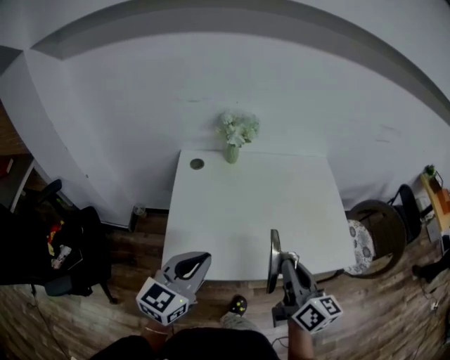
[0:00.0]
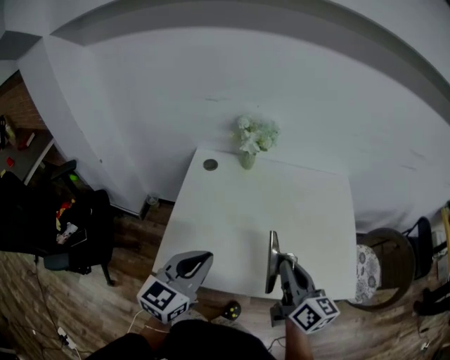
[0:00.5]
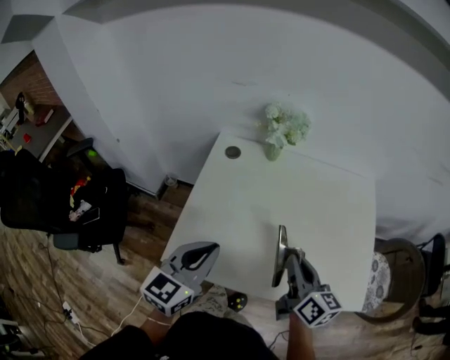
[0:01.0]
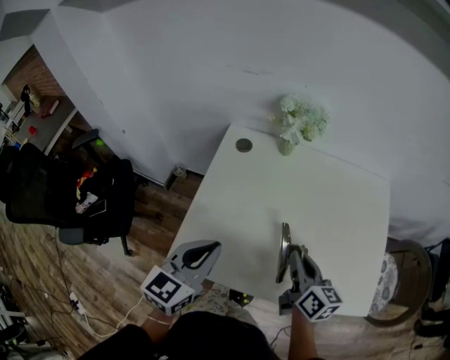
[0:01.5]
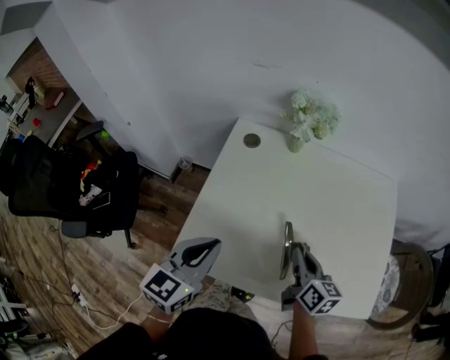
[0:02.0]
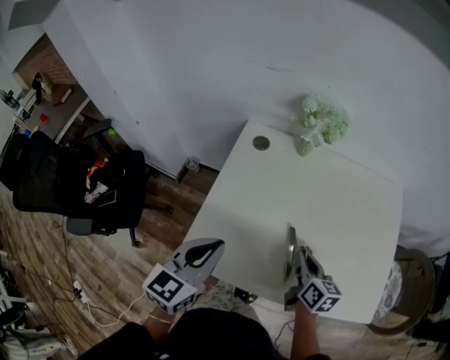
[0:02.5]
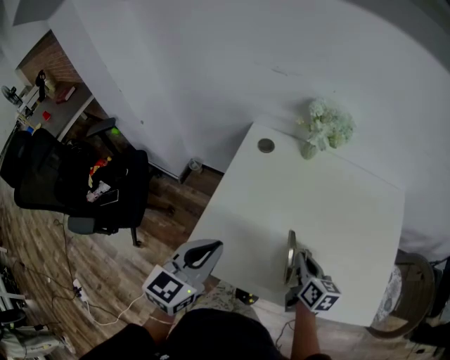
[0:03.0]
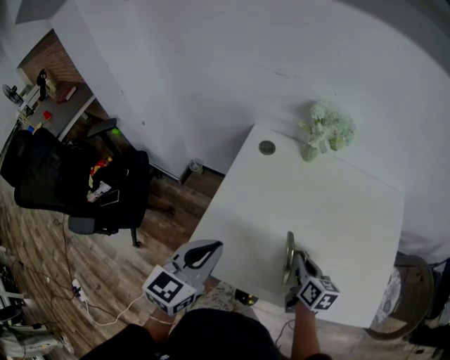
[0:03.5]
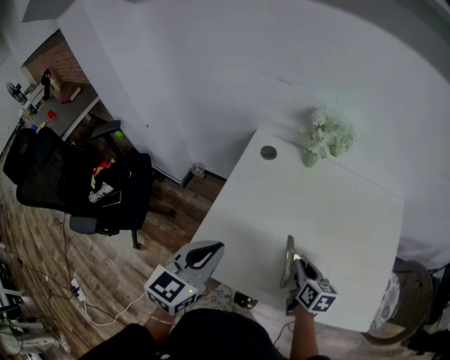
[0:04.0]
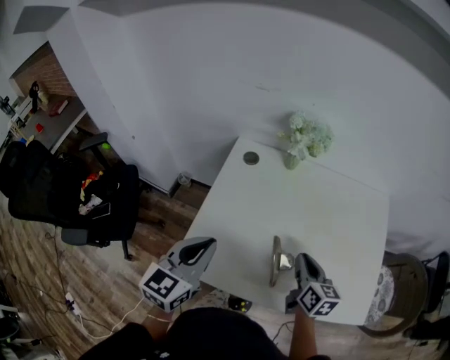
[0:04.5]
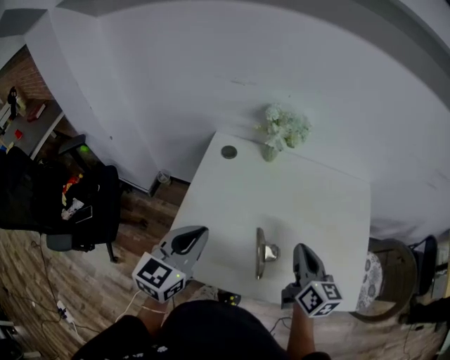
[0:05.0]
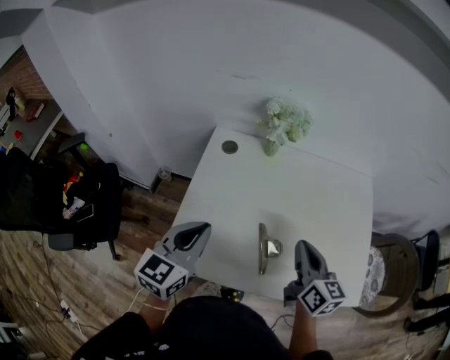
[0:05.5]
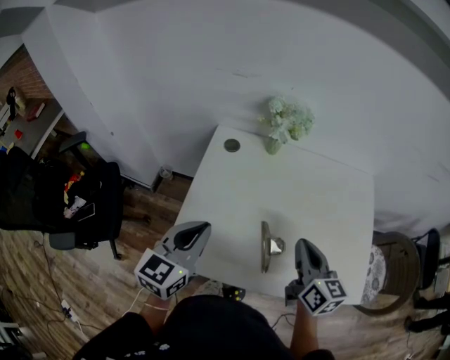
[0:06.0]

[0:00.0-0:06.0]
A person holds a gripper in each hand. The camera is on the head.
0:00.0 to 0:02.0: The right gripper travels forward and downward by some 25 cm, and swivels about 20 degrees. The left gripper goes approximately 10 cm forward and downward, and swivels about 20 degrees.
0:02.0 to 0:04.0: The right gripper heads downward, covering some 5 cm.
0:04.0 to 0:06.0: The right gripper travels upward by some 15 cm, rotates roughly 20 degrees, and closes.

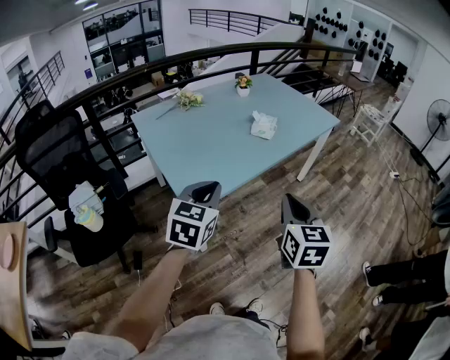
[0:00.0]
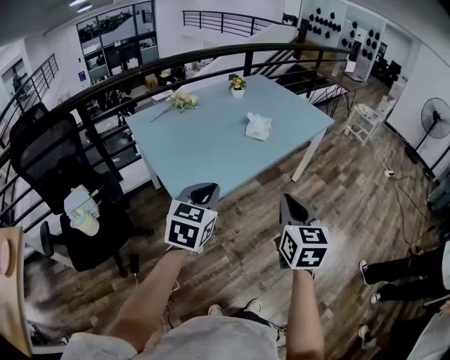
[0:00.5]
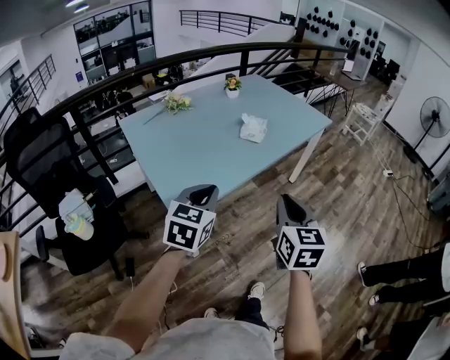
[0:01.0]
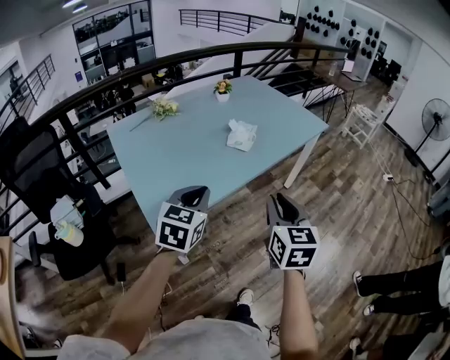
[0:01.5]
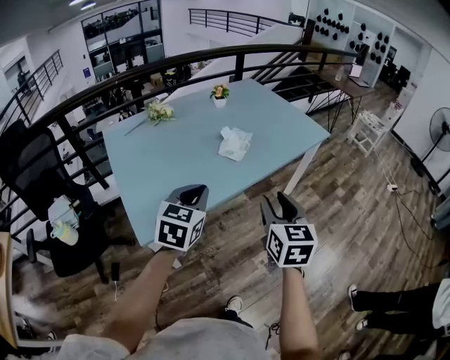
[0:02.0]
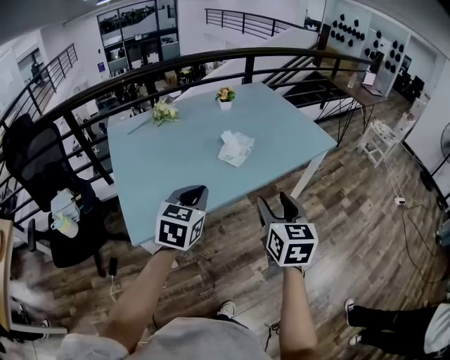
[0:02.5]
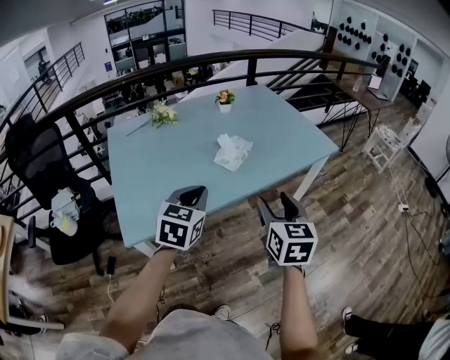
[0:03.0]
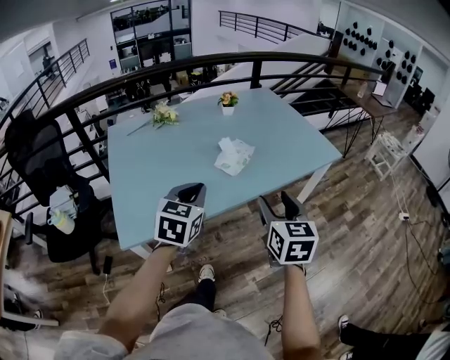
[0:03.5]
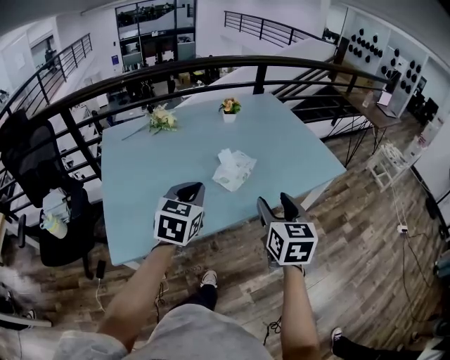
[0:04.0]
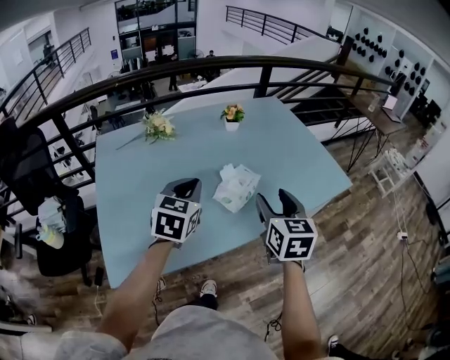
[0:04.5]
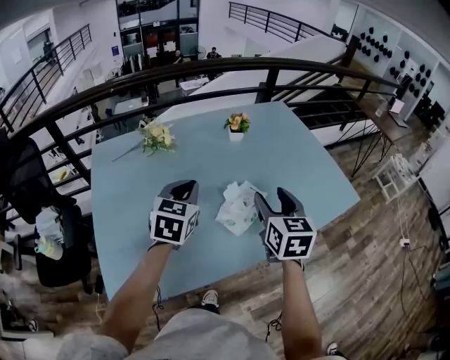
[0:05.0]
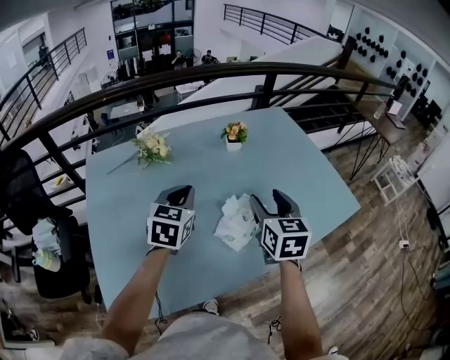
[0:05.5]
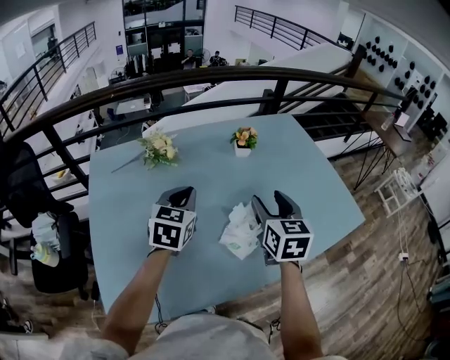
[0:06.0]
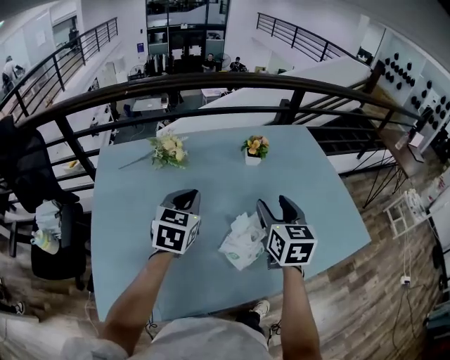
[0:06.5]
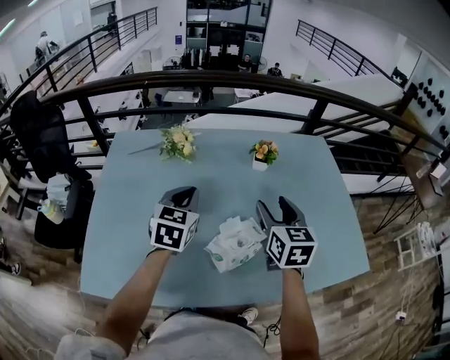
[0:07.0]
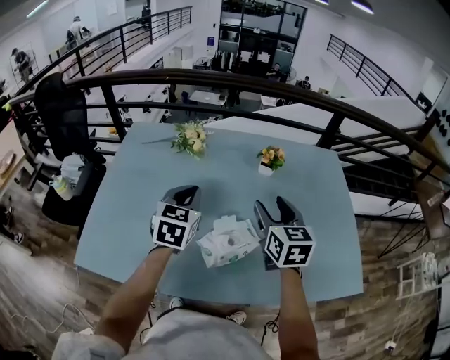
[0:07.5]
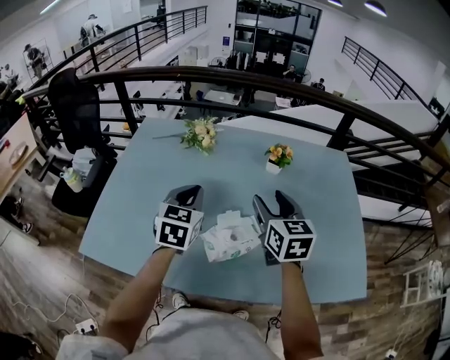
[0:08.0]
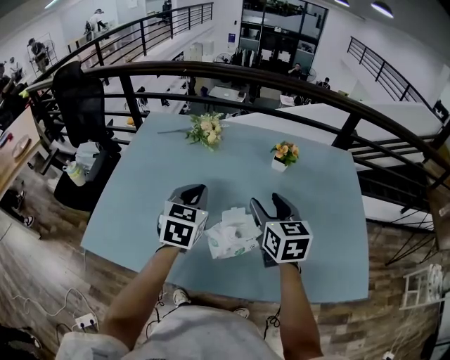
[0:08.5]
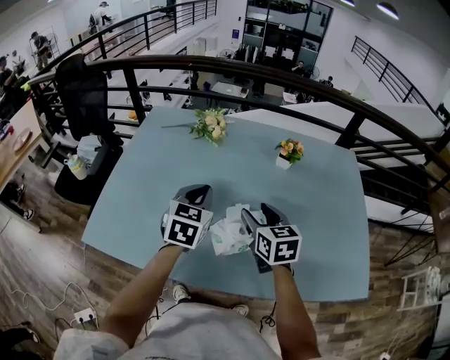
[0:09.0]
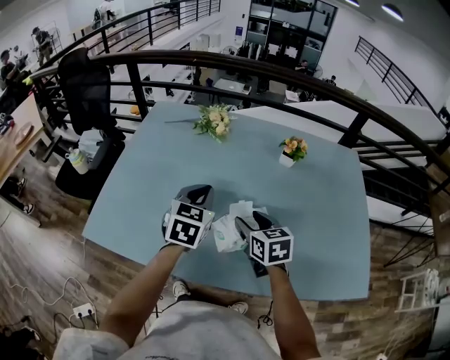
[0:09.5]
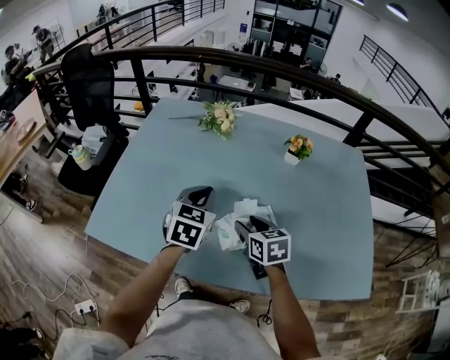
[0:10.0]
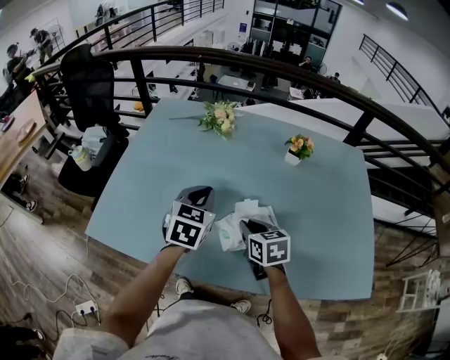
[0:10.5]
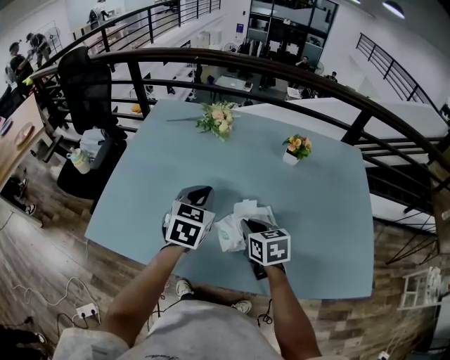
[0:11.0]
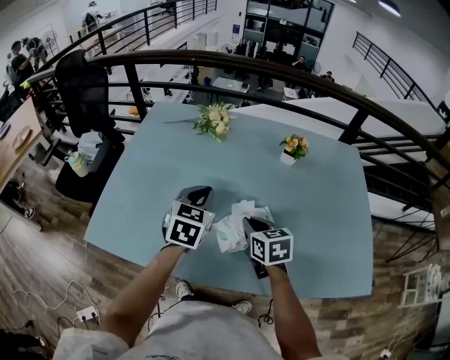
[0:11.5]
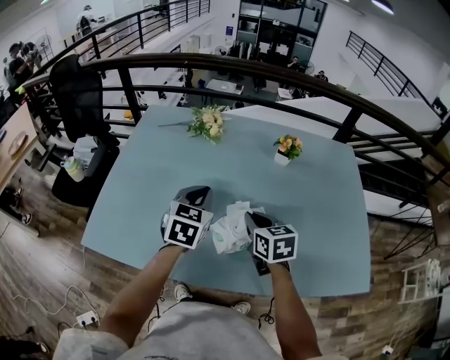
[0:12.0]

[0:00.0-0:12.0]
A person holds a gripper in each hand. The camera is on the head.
0:00.0 to 0:02.0: The grippers both shift forward and to the right by roughly 20 cm. The right gripper opens.
0:02.0 to 0:04.0: Both grippers travel together forward, approximately 15 cm. The right gripper opens up.
0:04.0 to 0:06.0: The grippers both shift forward by roughly 25 cm.
0:06.0 to 0:08.0: The left gripper shifts by roughly 5 cm, and rotates approximately 30 degrees, while the right gripper changes place by some 5 cm, and rotates about 30 degrees.
0:08.0 to 0:10.0: The left gripper shifts by about 5 cm; the right gripper shifts roughly 20 cm downward and to the left, and swivels some 30 degrees.
0:10.0 to 0:12.0: The right gripper moves some 5 cm, and closes up.

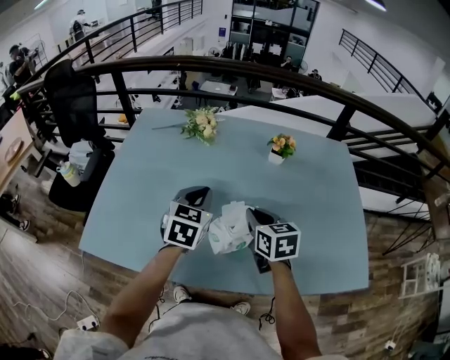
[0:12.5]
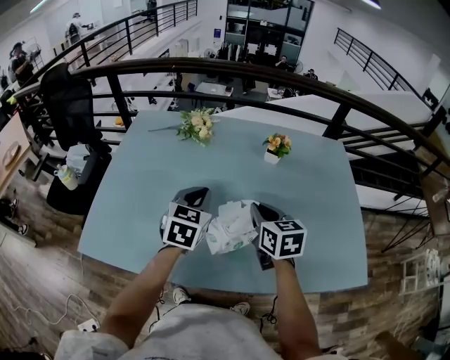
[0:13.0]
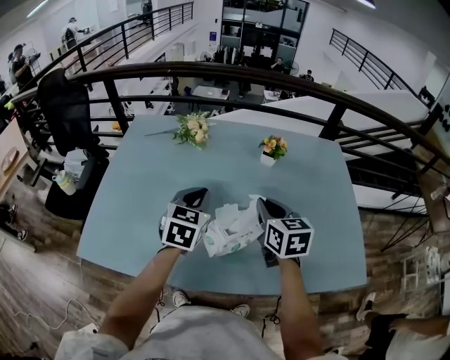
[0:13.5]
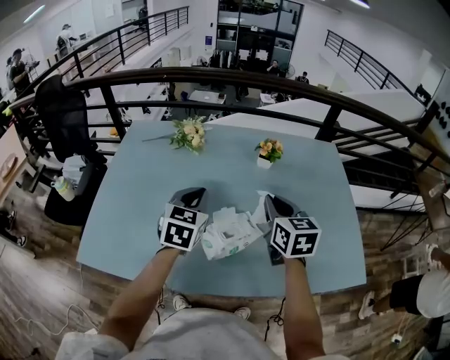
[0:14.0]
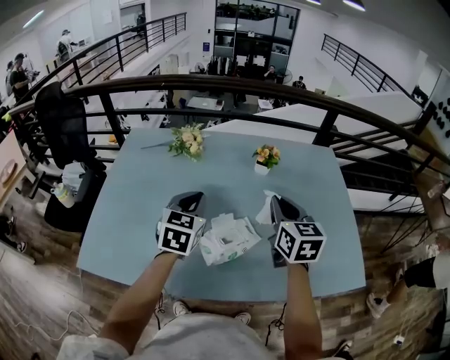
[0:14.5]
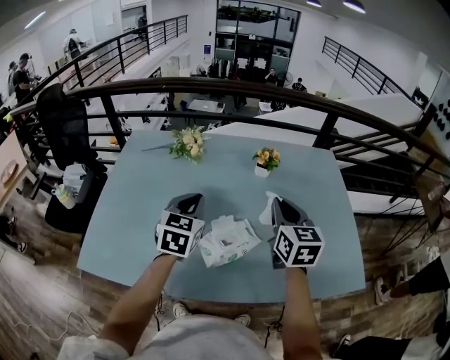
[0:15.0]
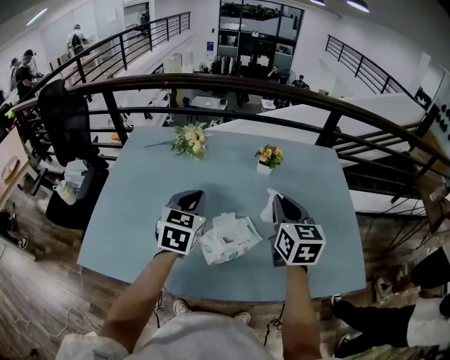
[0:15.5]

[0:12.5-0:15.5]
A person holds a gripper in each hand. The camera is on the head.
0:12.5 to 0:14.0: The right gripper heads upward and to the right, covering roughly 10 cm.
0:14.0 to 0:15.5: The grippers stay close to where they were, moving slightly.

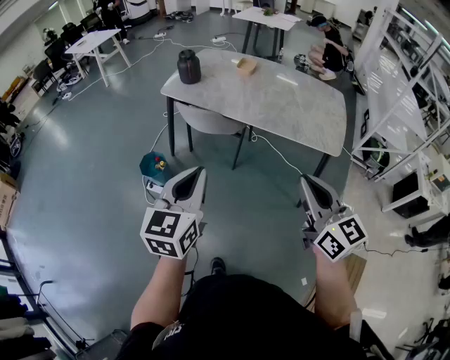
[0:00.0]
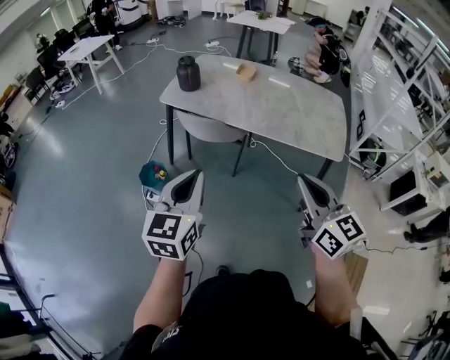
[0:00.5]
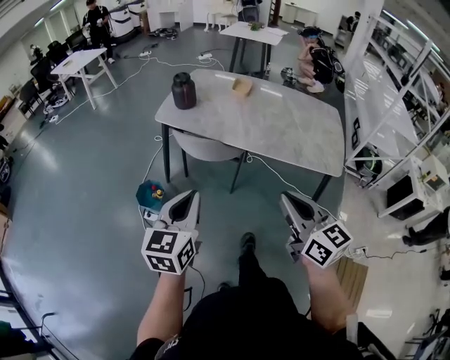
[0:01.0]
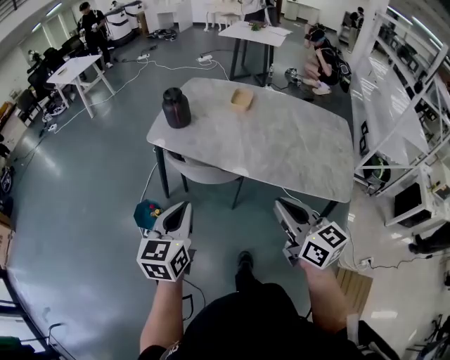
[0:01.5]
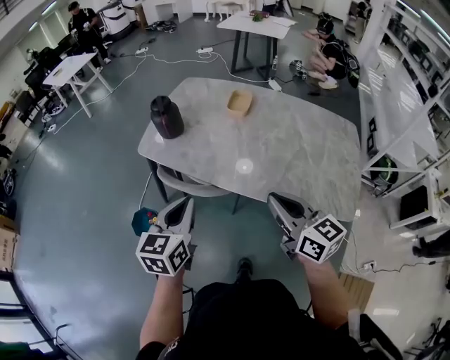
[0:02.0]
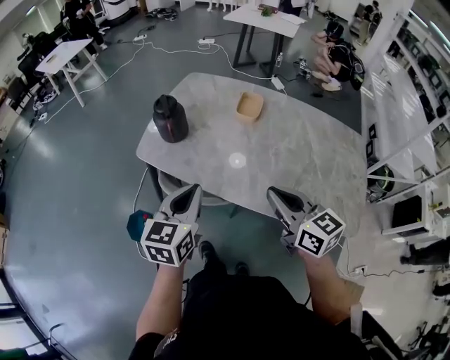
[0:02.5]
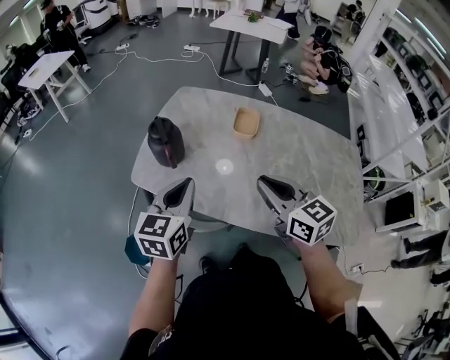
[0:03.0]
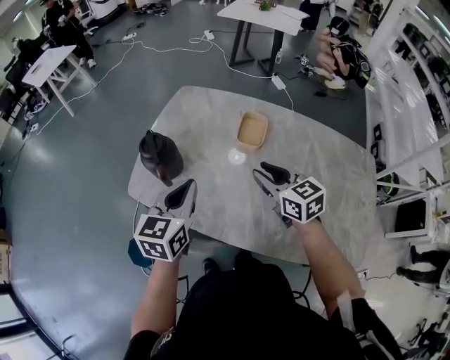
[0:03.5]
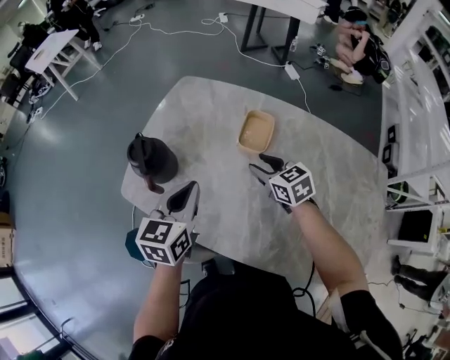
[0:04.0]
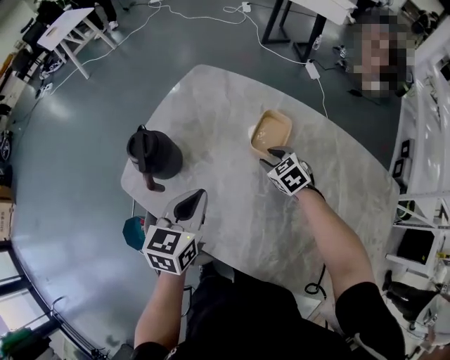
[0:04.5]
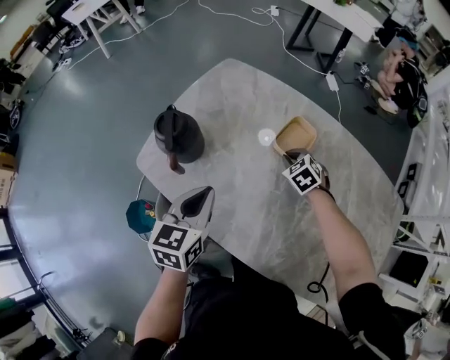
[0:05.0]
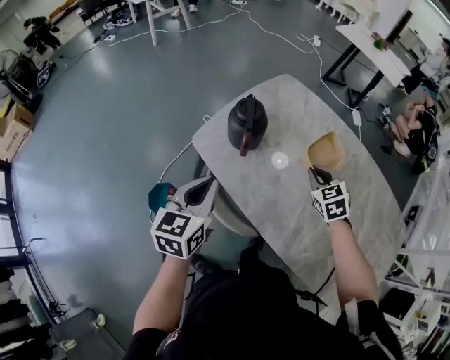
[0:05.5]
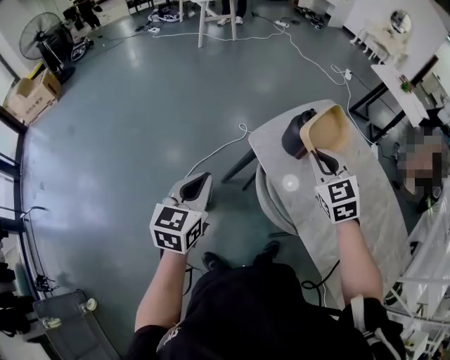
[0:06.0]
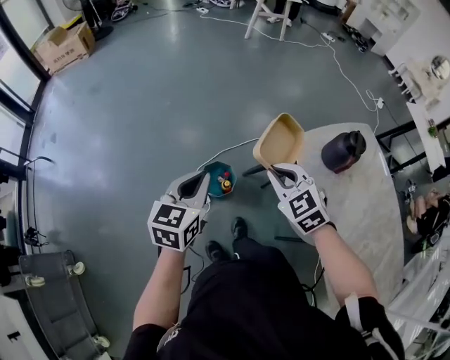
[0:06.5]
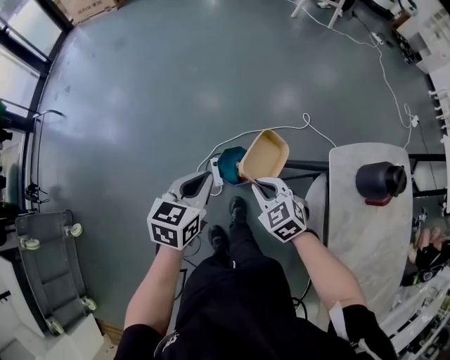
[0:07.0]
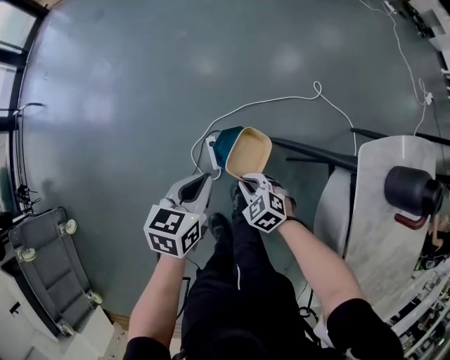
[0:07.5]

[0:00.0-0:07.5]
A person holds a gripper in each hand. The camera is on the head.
0:00.0 to 0:02.0: Both grippers travel together forward, about 35 cm.
0:02.0 to 0:04.0: The right gripper moves forward and downward, roughly 50 cm, rotates about 30 degrees, and opens, while the left gripper travels forward by roughly 35 cm.
0:04.0 to 0:05.5: The left gripper shifts some 20 cm to the left and backward; the right gripper travels to the left by about 10 cm, reaches about 10 cm downward, then returns, turns by roughly 30 degrees, and closes.
0:05.5 to 0:07.5: The two grippers travel together, some 50 cm. The right gripper changes its angle by roughly 70 degrees. The left gripper swivels roughly 40 degrees.
